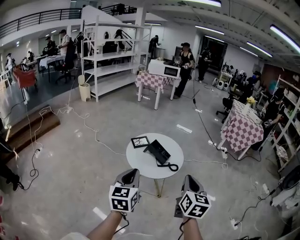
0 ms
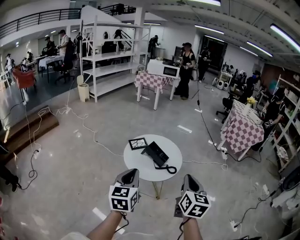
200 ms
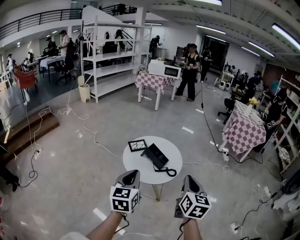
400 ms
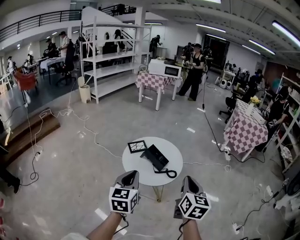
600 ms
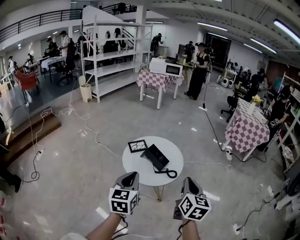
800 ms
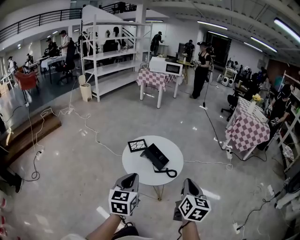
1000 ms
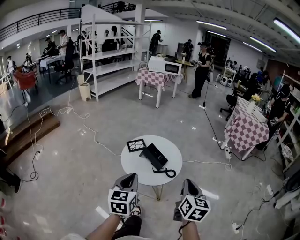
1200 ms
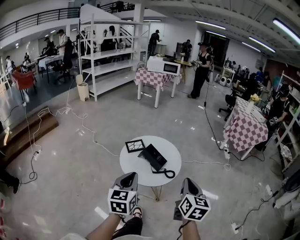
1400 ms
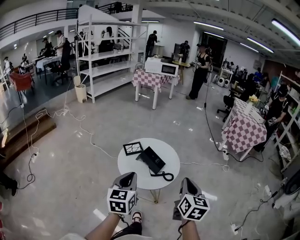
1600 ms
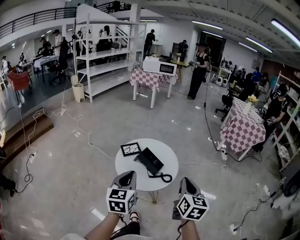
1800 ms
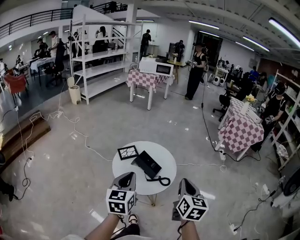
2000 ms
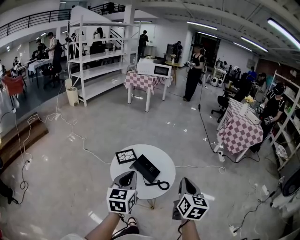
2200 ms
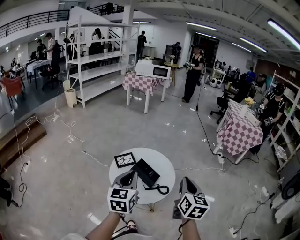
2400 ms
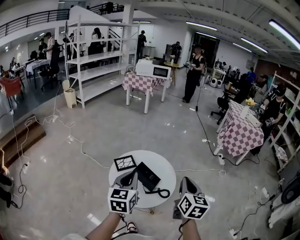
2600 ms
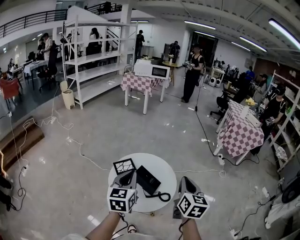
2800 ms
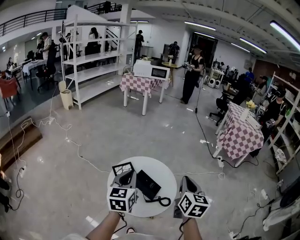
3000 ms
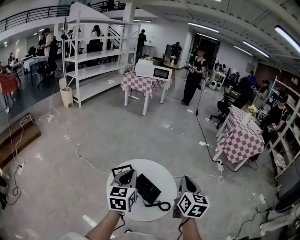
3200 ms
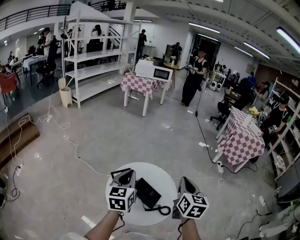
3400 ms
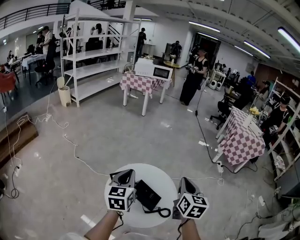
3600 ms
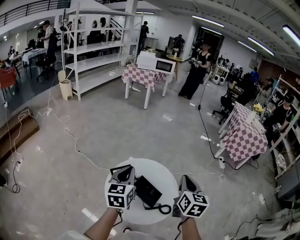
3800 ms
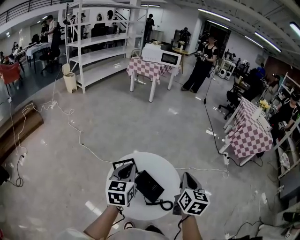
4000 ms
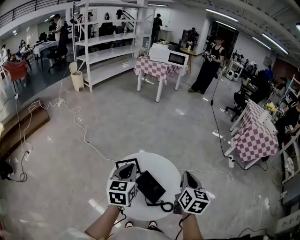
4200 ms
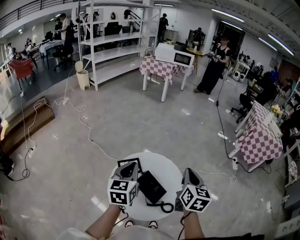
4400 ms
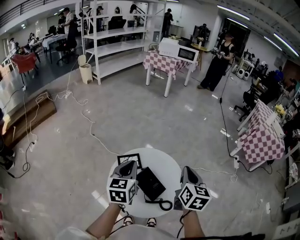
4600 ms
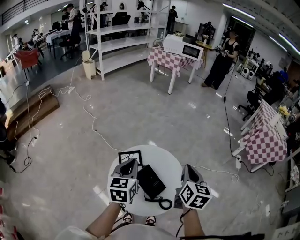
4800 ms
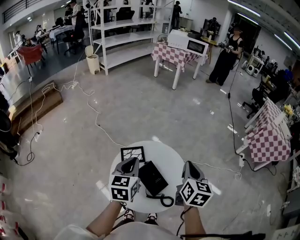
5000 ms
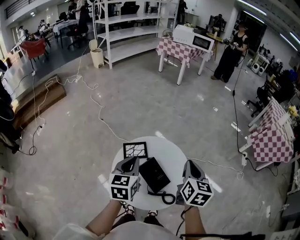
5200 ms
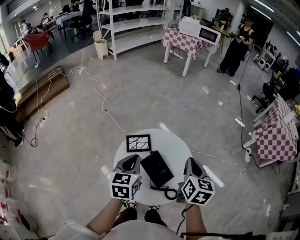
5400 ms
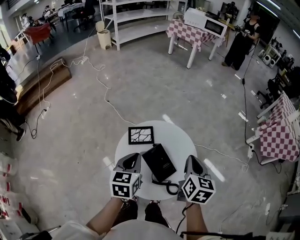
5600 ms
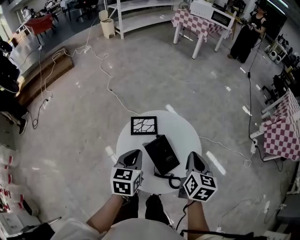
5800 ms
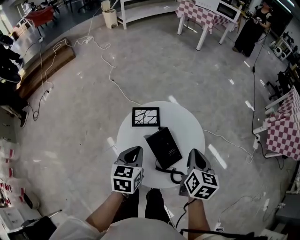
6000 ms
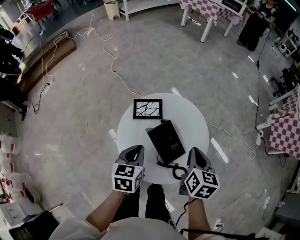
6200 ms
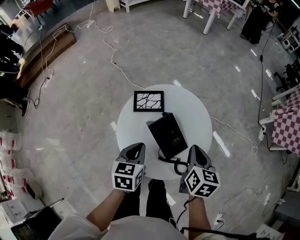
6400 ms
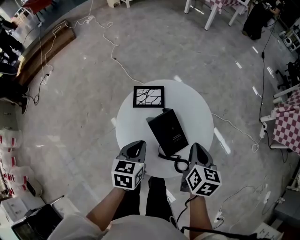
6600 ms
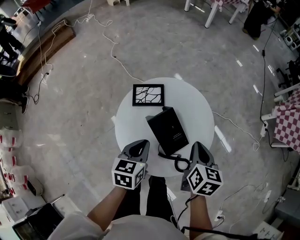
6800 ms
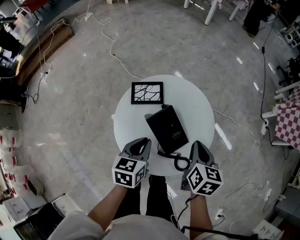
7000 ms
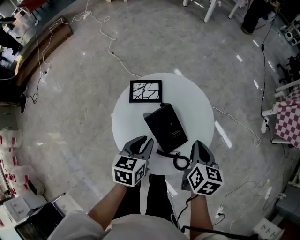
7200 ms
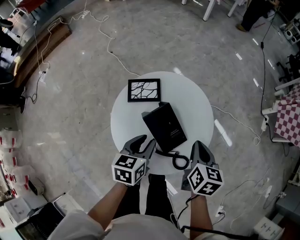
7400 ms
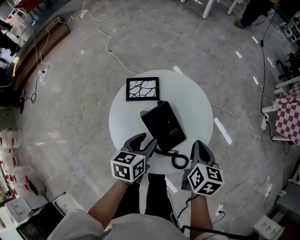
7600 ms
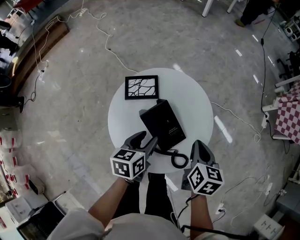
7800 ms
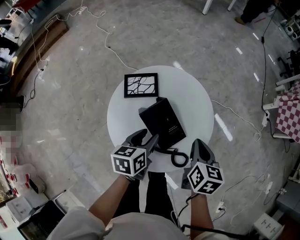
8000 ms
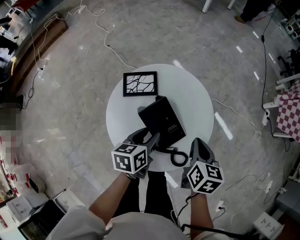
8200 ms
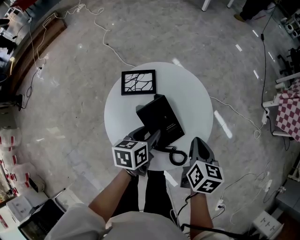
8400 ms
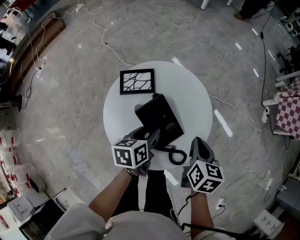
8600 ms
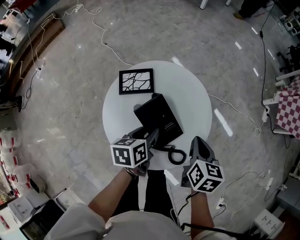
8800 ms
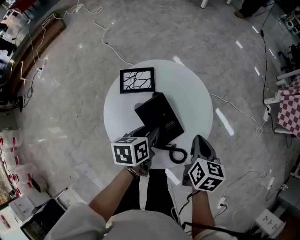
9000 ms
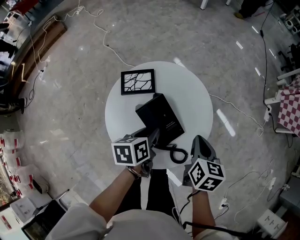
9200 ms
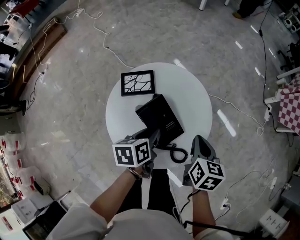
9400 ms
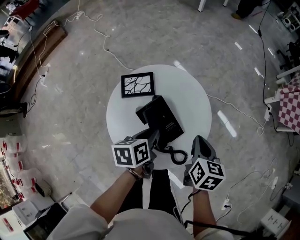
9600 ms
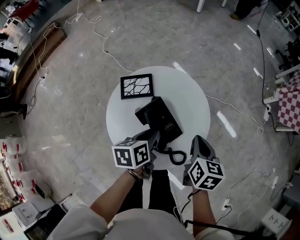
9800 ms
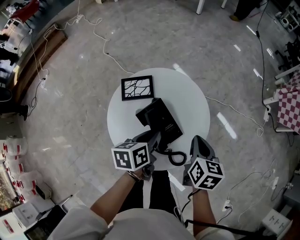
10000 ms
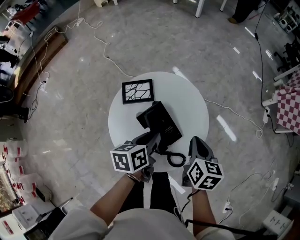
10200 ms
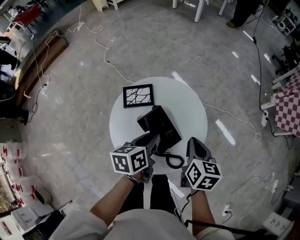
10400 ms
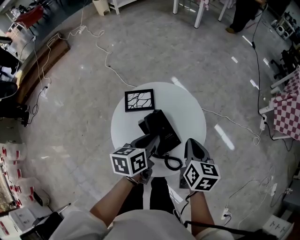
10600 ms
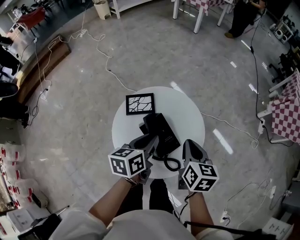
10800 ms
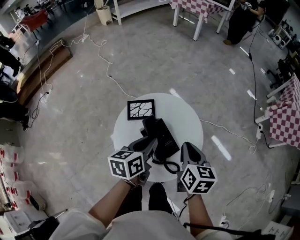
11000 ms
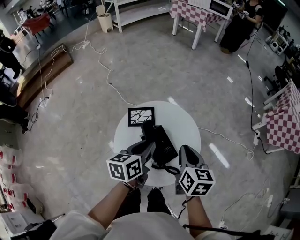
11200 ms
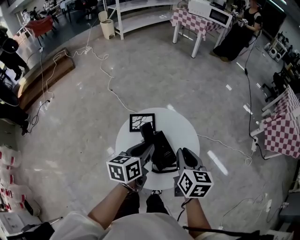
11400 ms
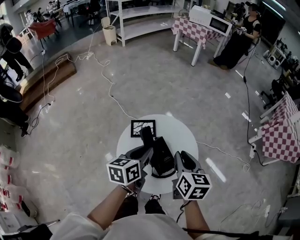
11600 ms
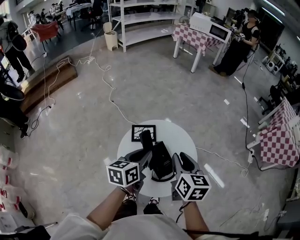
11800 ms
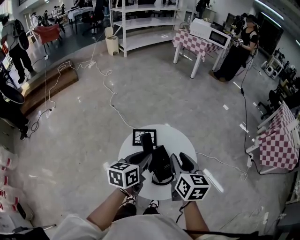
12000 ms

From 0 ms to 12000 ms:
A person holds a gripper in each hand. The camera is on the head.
From 0 ms to 1600 ms: Both grippers travel together forward, some 10 cm.
From 1600 ms to 3000 ms: The grippers both shift forward by approximately 15 cm.
From 3000 ms to 4400 ms: The left gripper travels forward by roughly 5 cm, while the right gripper goes about 10 cm forward.
From 4400 ms to 6000 ms: The left gripper moves downward and backward, some 15 cm, and rotates approximately 20 degrees; the right gripper shifts about 10 cm downward, and swivels roughly 20 degrees.
From 6000 ms to 7600 ms: The right gripper heads downward, covering approximately 5 cm. The left gripper travels downward and to the right by about 10 cm, and opens its fingers.
From 7600 ms to 9000 ms: There are only small adjustments of the grippers.
From 9000 ms to 10400 ms: The left gripper moves upward, some 5 cm.
From 10400 ms to 12000 ms: The grippers both shift upward and to the left by some 15 cm. The right gripper opens its fingers.

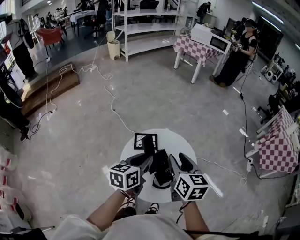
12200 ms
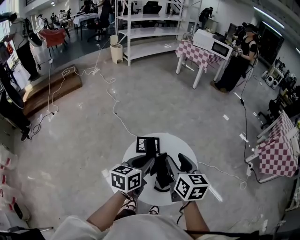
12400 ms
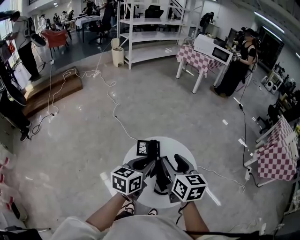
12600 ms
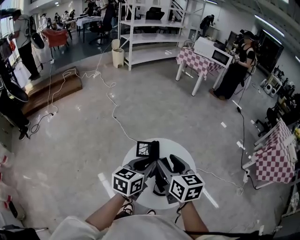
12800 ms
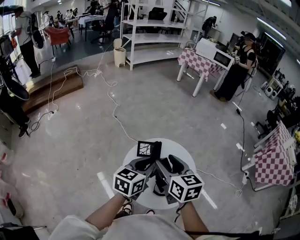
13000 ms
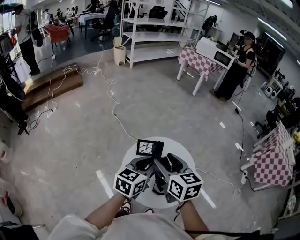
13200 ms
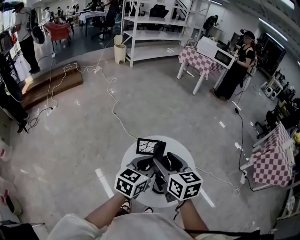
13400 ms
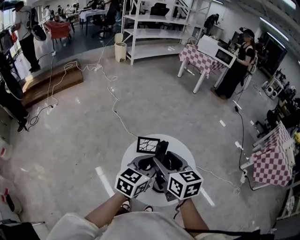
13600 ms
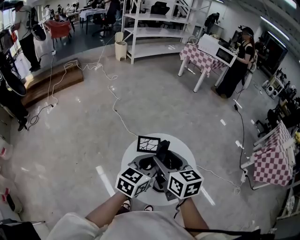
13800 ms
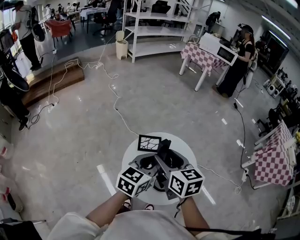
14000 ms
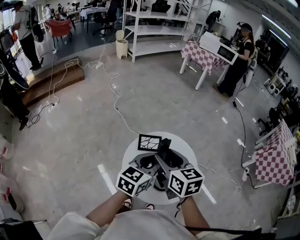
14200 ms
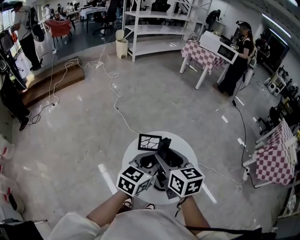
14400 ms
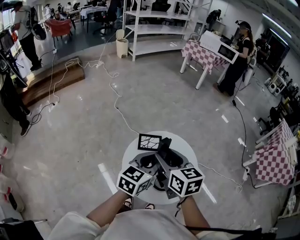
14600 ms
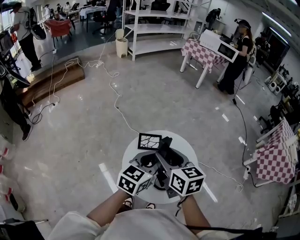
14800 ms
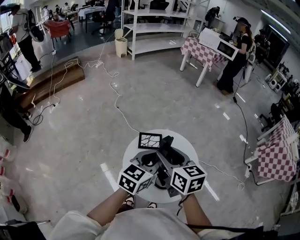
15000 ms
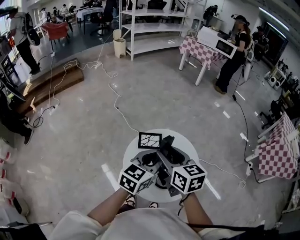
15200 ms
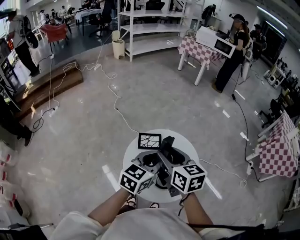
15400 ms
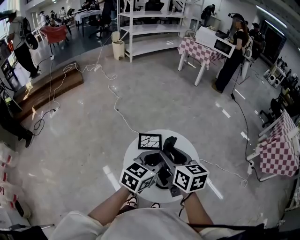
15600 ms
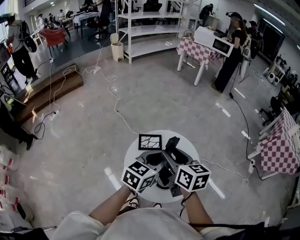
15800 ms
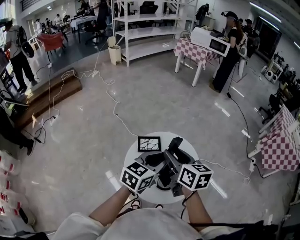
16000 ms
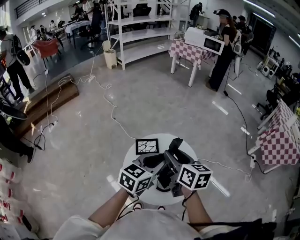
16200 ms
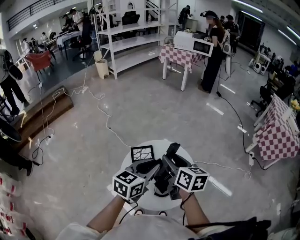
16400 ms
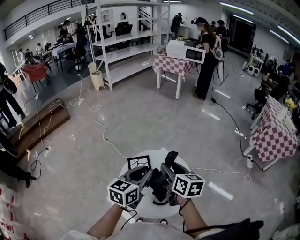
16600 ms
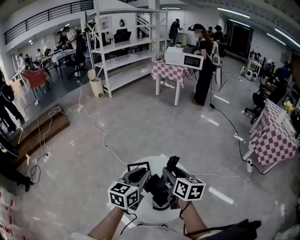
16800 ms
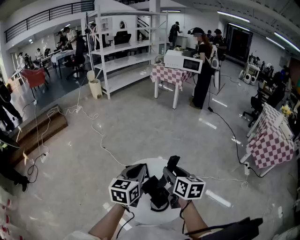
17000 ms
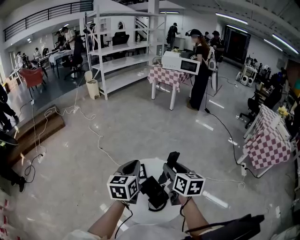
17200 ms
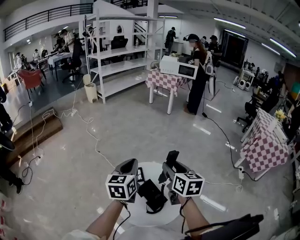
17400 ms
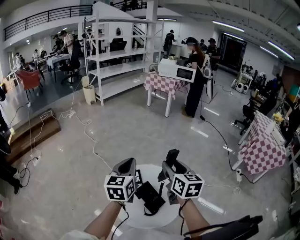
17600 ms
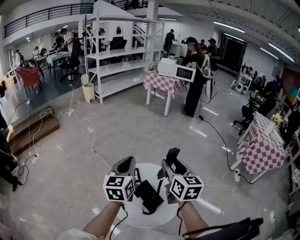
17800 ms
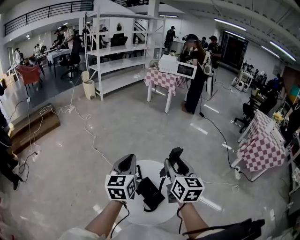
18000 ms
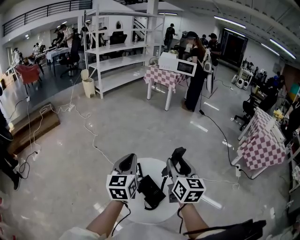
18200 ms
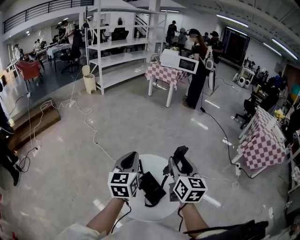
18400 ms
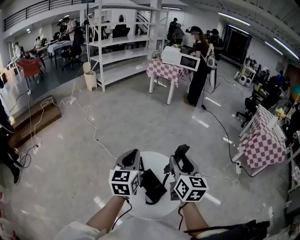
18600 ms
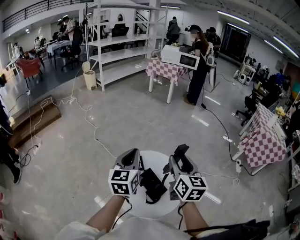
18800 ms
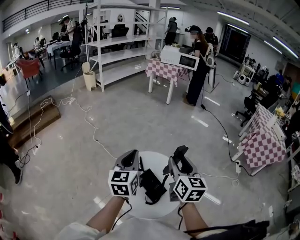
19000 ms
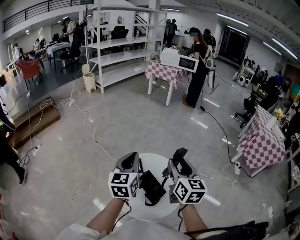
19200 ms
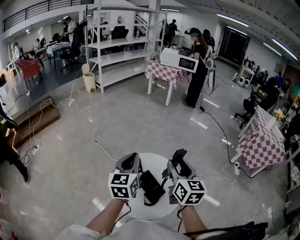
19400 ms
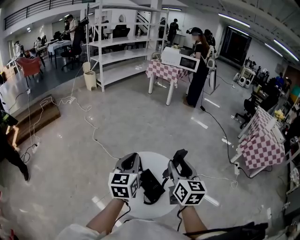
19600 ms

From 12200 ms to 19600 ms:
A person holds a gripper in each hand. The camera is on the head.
From 12200 ms to 13600 ms: The right gripper travels to the left by roughly 10 cm.
From 13600 ms to 15200 ms: The grippers make only small movements.
From 15200 ms to 16600 ms: The right gripper shifts approximately 10 cm to the right, and swivels some 20 degrees.
From 16600 ms to 18200 ms: The right gripper moves upward and to the right, roughly 10 cm, and swivels about 30 degrees, while the left gripper shifts about 10 cm upward and forward, and rotates roughly 20 degrees.
From 18200 ms to 19600 ms: The grippers stay close to where they were, moving slightly.

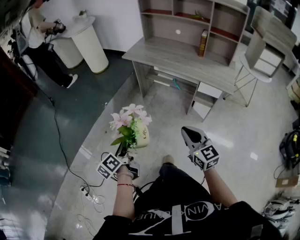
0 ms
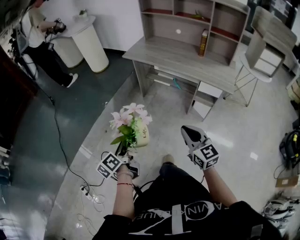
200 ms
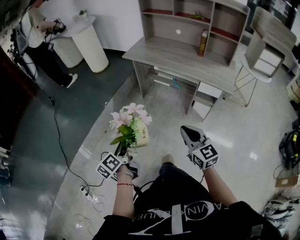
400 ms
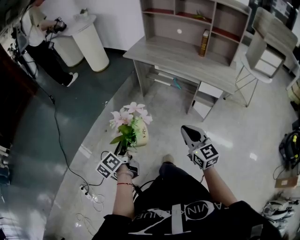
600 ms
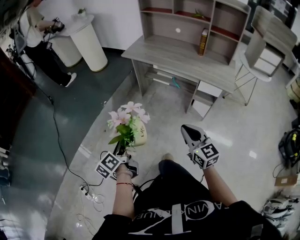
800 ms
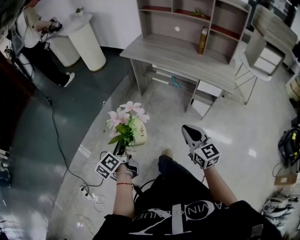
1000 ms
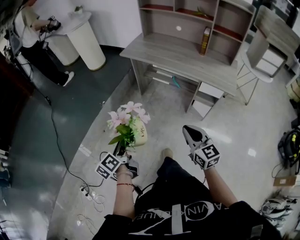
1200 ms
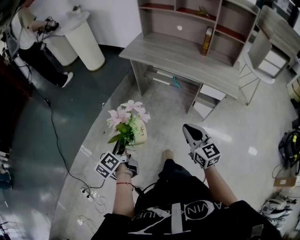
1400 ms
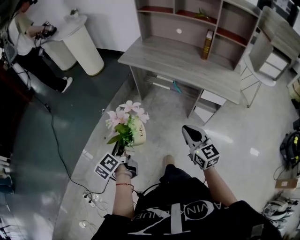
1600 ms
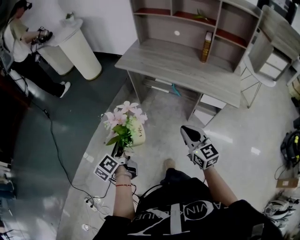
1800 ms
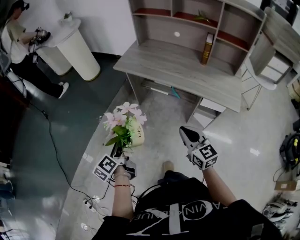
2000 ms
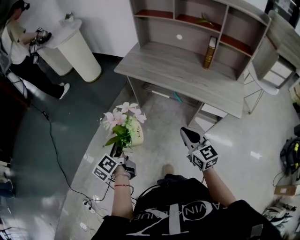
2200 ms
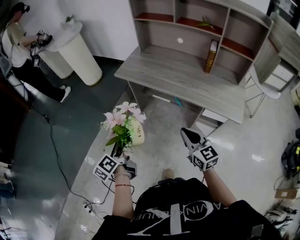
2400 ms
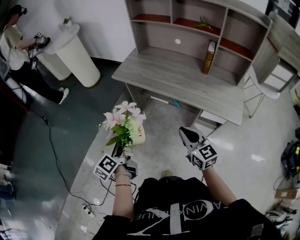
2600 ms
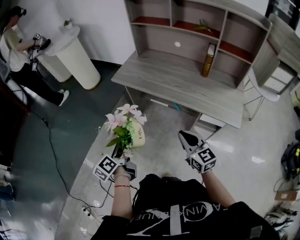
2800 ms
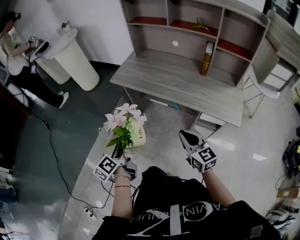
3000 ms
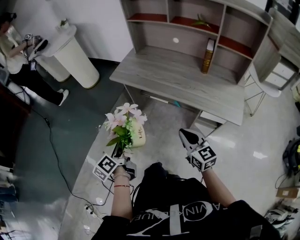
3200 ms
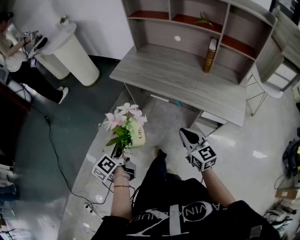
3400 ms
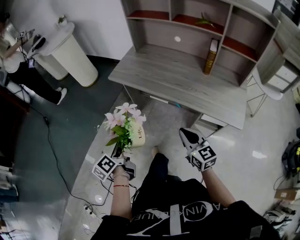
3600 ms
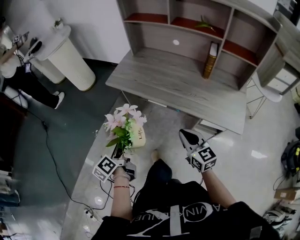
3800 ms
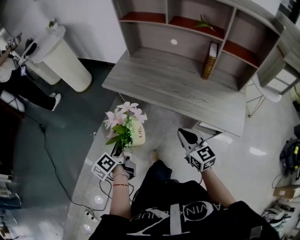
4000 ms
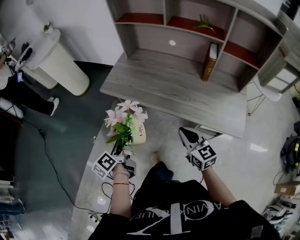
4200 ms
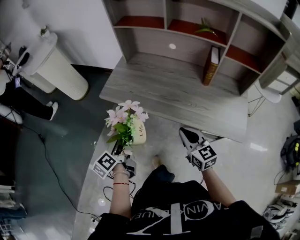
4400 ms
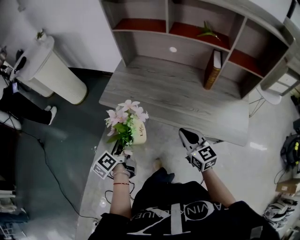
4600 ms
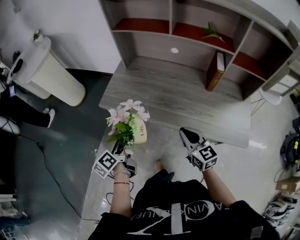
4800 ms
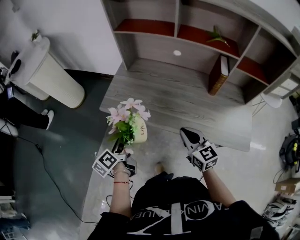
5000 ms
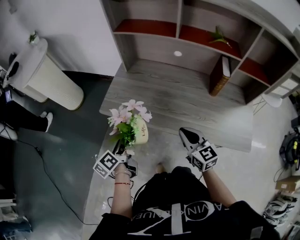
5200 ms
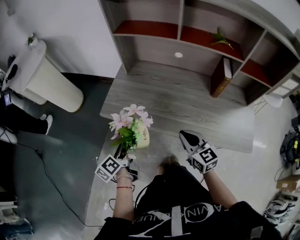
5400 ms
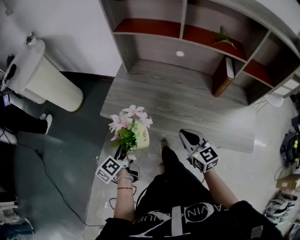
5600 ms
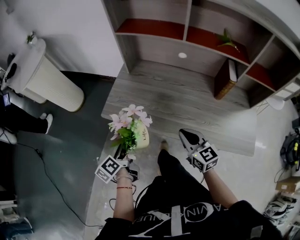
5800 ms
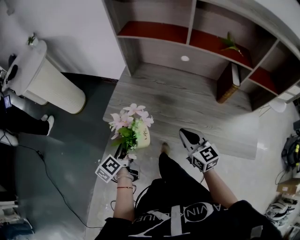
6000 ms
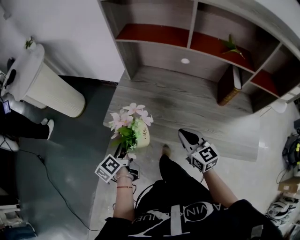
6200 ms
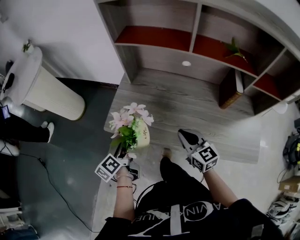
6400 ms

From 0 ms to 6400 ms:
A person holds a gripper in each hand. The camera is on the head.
From 0 ms to 1600 ms: Both grippers move forward, about 15 cm.
From 1600 ms to 3200 ms: The grippers both shift forward and to the right by roughly 15 cm.
From 3200 ms to 4800 ms: The two grippers go roughly 25 cm forward.
From 4800 ms to 6400 ms: Both grippers move forward, roughly 15 cm.
